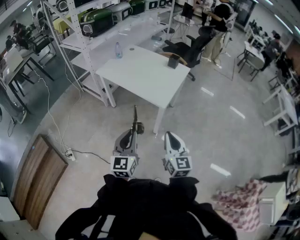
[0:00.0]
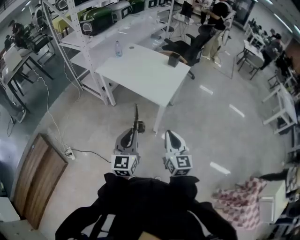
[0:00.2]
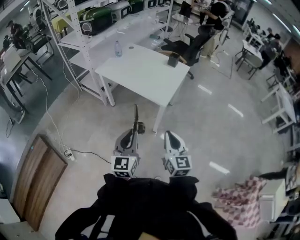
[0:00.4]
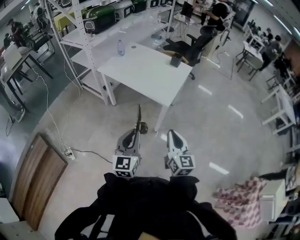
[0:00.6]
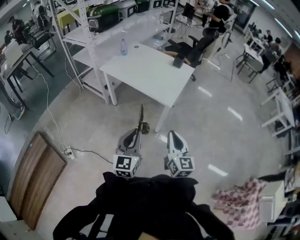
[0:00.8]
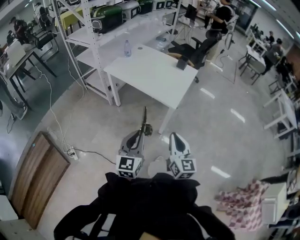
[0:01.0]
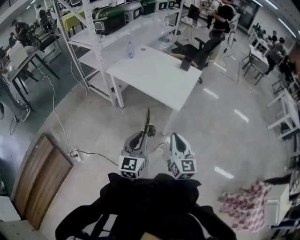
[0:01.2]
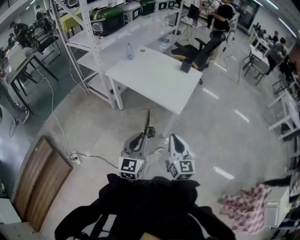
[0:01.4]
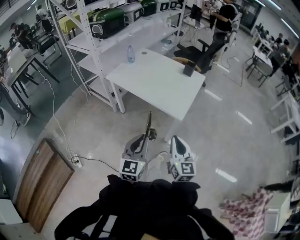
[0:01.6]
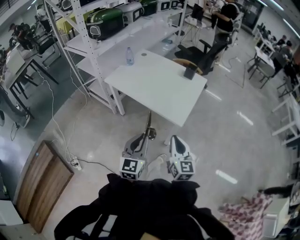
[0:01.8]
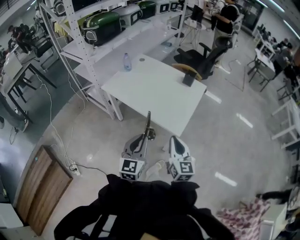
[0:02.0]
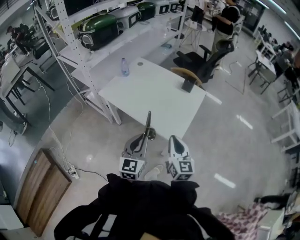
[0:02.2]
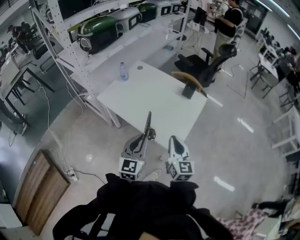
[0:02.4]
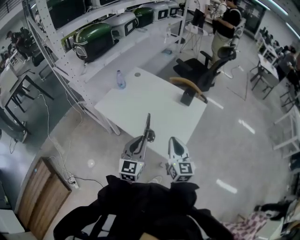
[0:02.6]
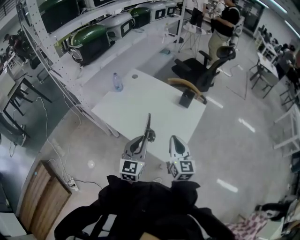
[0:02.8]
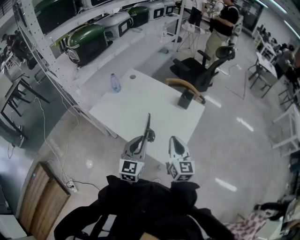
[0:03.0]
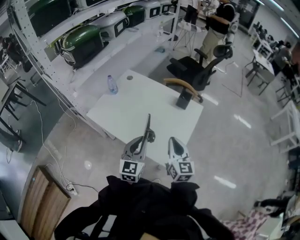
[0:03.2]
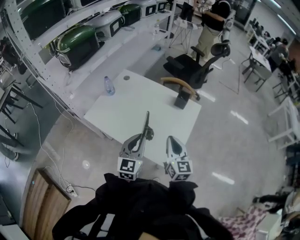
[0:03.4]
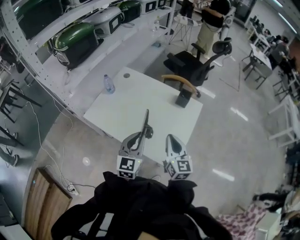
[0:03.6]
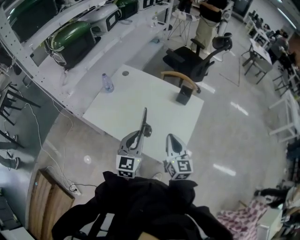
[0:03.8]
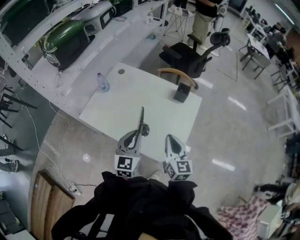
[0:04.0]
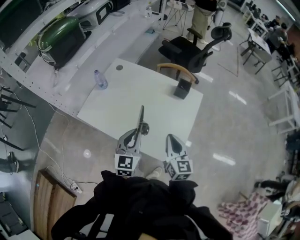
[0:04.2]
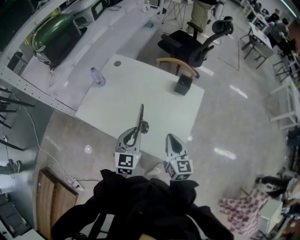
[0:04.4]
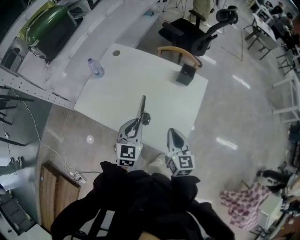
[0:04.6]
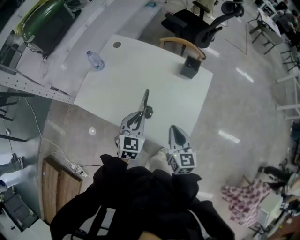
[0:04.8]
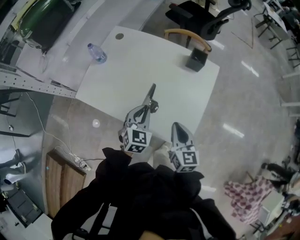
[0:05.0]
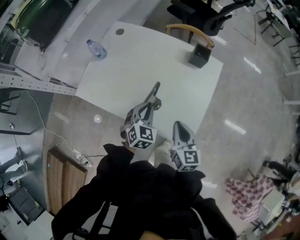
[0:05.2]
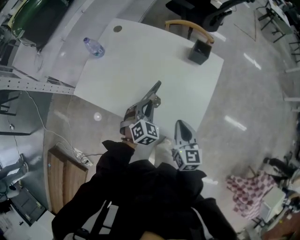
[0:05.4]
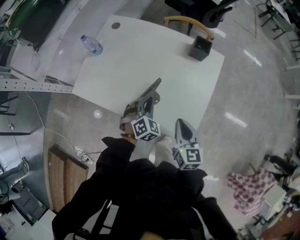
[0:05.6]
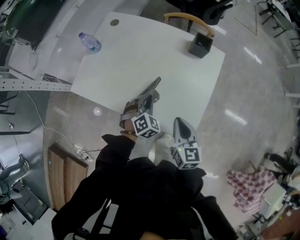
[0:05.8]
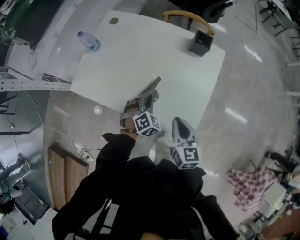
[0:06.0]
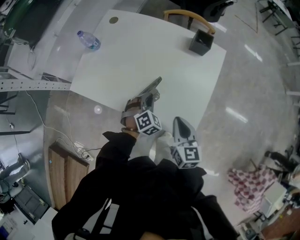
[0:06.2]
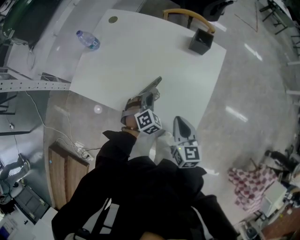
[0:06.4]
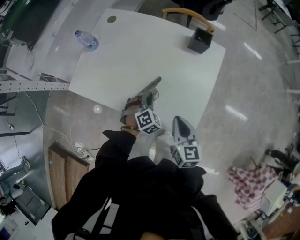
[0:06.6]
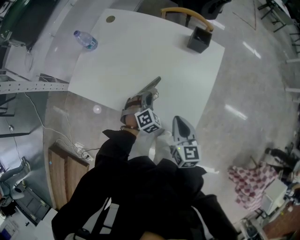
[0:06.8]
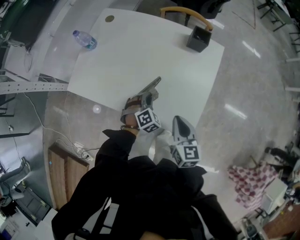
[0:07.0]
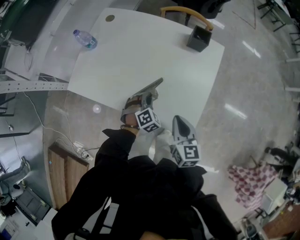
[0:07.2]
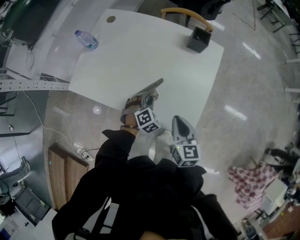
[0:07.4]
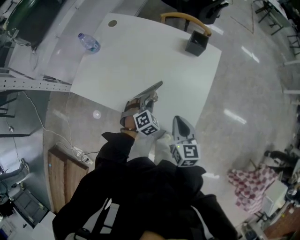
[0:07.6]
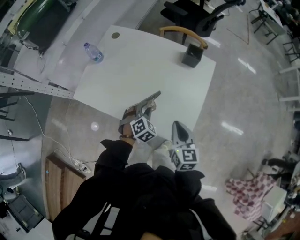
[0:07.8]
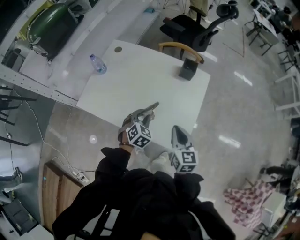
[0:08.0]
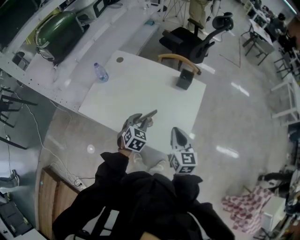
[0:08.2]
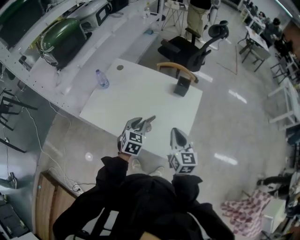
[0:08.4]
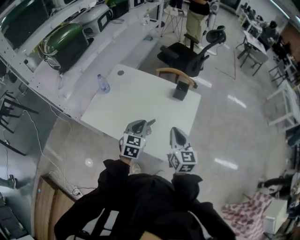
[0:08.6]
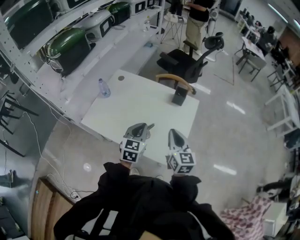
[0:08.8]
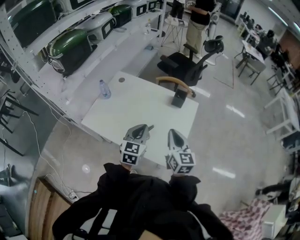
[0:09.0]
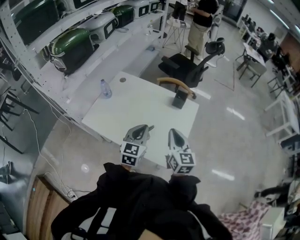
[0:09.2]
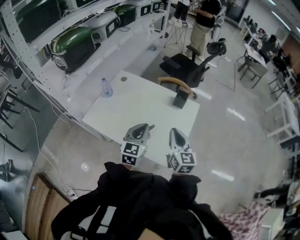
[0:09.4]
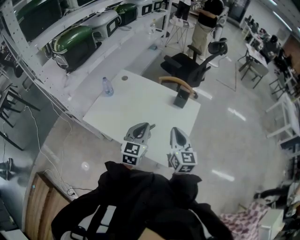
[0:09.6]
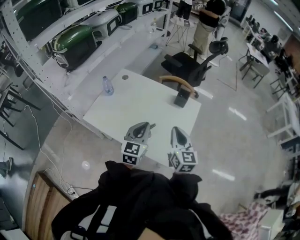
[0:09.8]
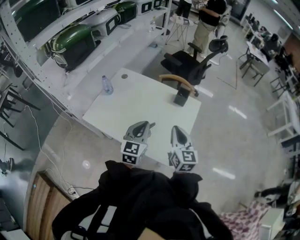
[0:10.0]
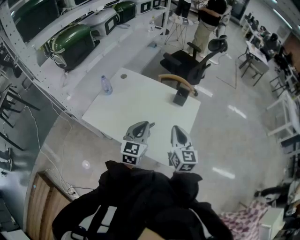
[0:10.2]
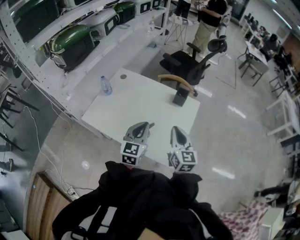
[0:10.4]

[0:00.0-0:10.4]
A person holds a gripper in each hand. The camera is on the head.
0:00.0 to 0:01.4: Both grippers move to the left, about 10 cm.
0:01.4 to 0:03.0: Both grippers travel together forward, some 40 cm.
0:03.0 to 0:04.4: The right gripper moves downward, some 5 cm. Meanwhile the left gripper is displaced forward and downward by about 10 cm.
0:04.4 to 0:06.0: The right gripper travels downward by approximately 10 cm; the left gripper moves downward, approximately 20 cm, and tilts its fingers roughly 30 degrees downward.
0:06.0 to 0:07.4: The grippers move only a little.
0:07.4 to 0:09.0: The left gripper travels upward by some 25 cm, points its fingers about 40 degrees further upward, and closes. Meanwhile the right gripper shifts about 15 cm upward.
0:09.0 to 0:10.4: The grippers stay close to where they were, moving slightly.

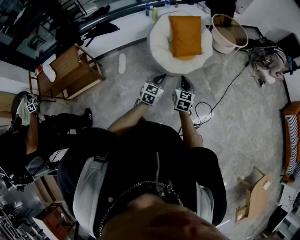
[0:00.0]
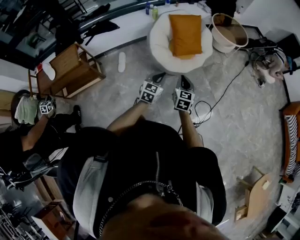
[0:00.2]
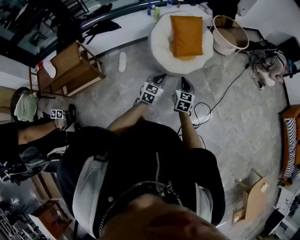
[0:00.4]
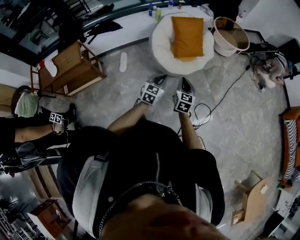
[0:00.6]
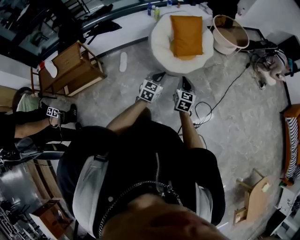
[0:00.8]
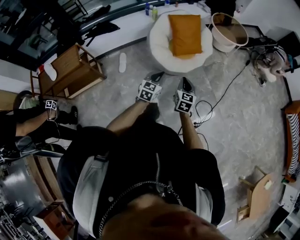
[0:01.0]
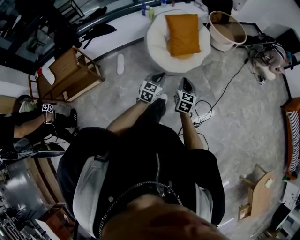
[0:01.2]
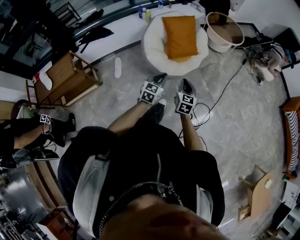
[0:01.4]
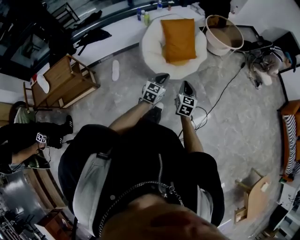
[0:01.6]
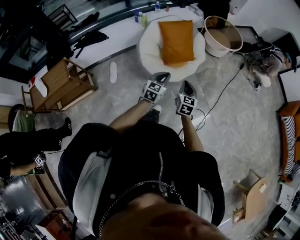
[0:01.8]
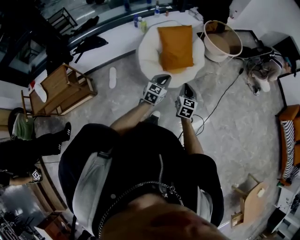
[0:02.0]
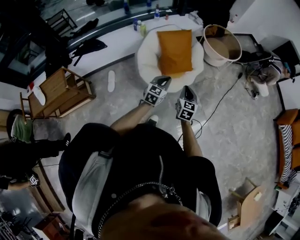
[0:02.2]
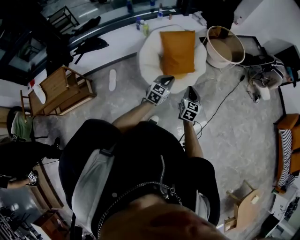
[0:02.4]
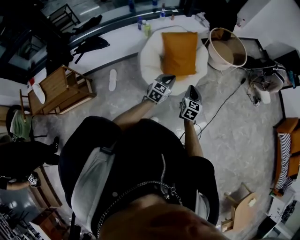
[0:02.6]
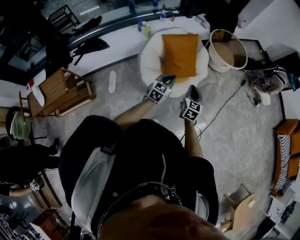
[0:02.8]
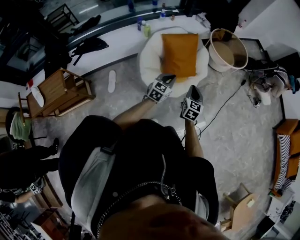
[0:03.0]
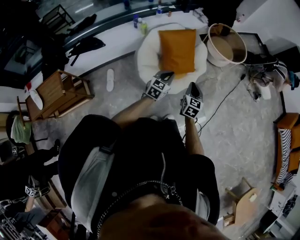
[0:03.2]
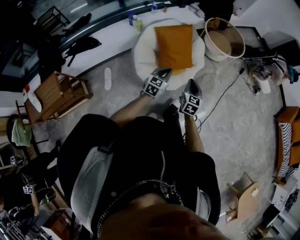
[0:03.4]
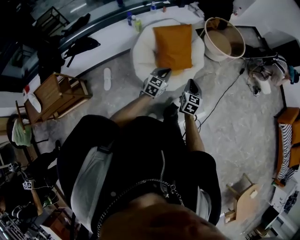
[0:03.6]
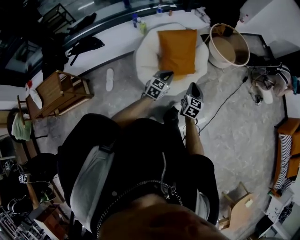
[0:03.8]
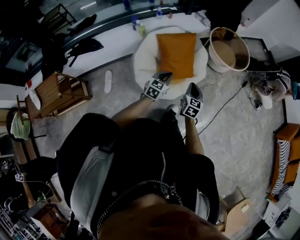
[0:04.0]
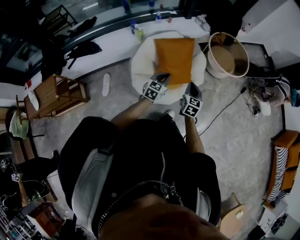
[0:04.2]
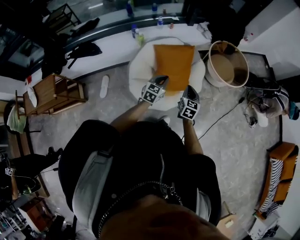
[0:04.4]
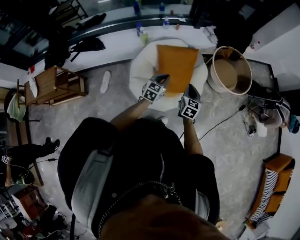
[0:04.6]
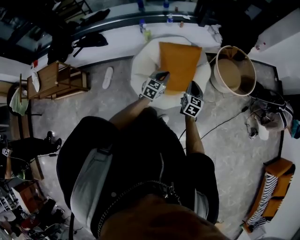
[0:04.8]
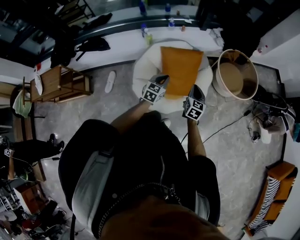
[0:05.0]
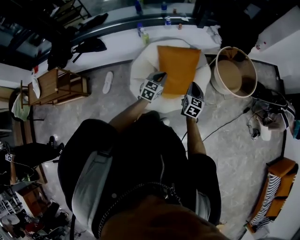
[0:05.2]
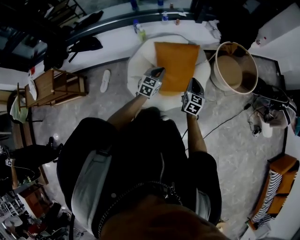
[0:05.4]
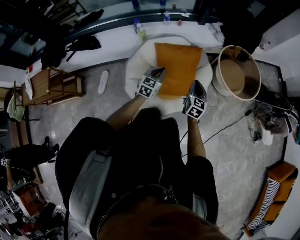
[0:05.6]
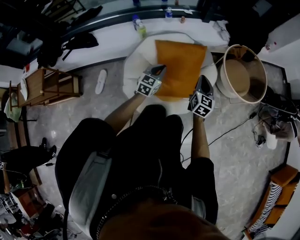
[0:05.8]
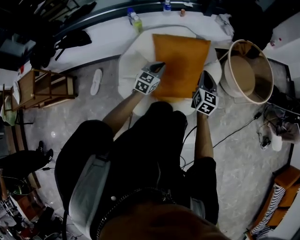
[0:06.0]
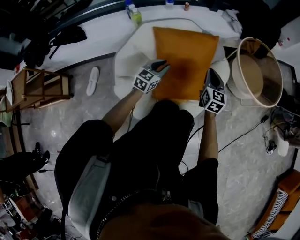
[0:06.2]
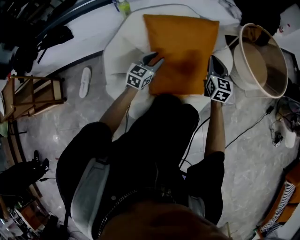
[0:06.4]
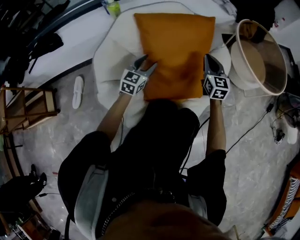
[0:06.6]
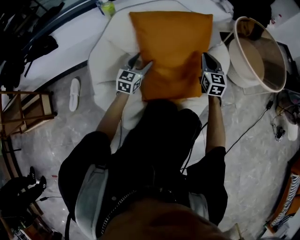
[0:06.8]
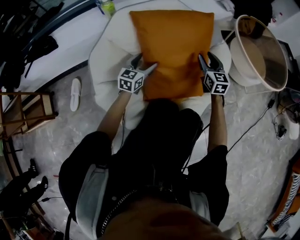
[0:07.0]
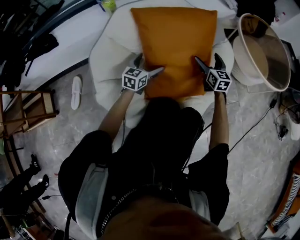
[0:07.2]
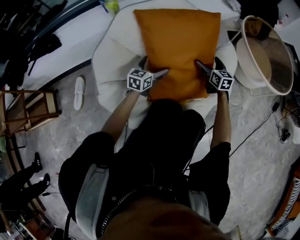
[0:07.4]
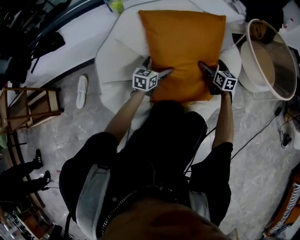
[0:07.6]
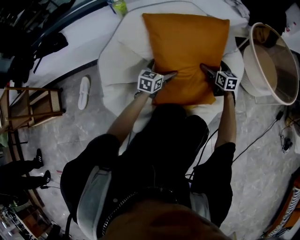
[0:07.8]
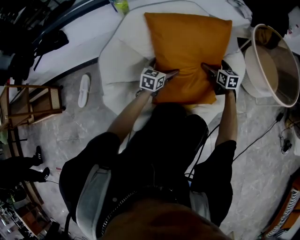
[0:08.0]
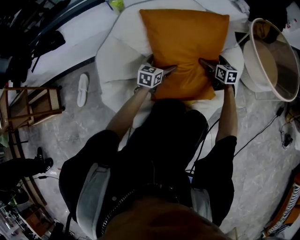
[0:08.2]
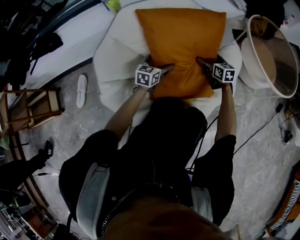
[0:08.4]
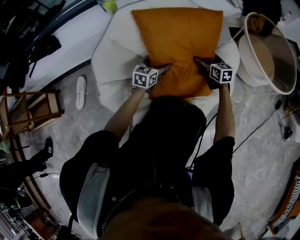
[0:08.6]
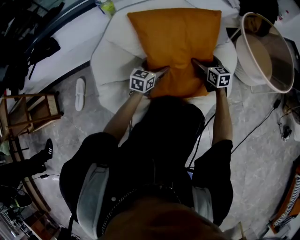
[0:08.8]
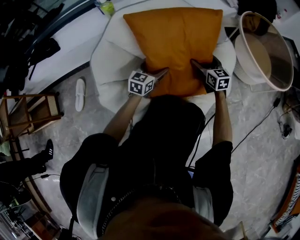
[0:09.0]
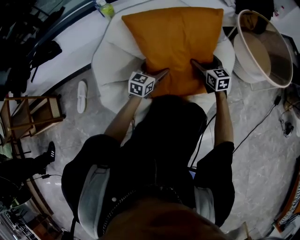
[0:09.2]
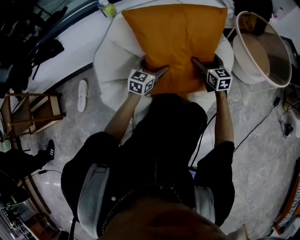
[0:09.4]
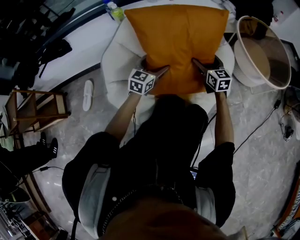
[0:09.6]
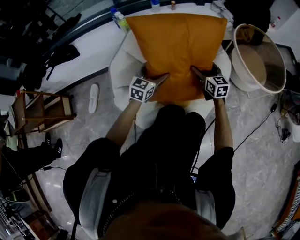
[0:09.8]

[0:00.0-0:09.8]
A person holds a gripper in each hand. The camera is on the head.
0:00.0 to 0:01.4: The left gripper is displaced forward by roughly 5 cm. Meanwhile the right gripper shifts by roughly 5 cm.
0:01.4 to 0:02.8: The grippers both shift forward by about 25 cm.
0:02.8 to 0:04.2: Both grippers move forward, about 15 cm.
0:04.2 to 0:05.6: The grippers both shift forward by some 15 cm.
0:05.6 to 0:07.0: The right gripper heads downward and forward, covering approximately 40 cm. Meanwhile the left gripper is displaced downward by about 40 cm, and opens up.
0:07.0 to 0:08.4: The left gripper heads downward, covering about 5 cm. The right gripper heads downward and forward, covering roughly 10 cm, swivels roughly 20 degrees, and opens its fingers.
0:08.4 to 0:09.8: Both grippers travel together upward and backward, about 20 cm.

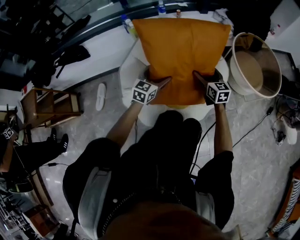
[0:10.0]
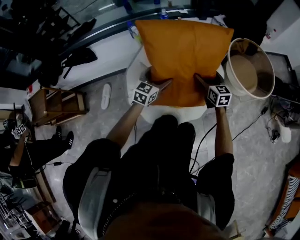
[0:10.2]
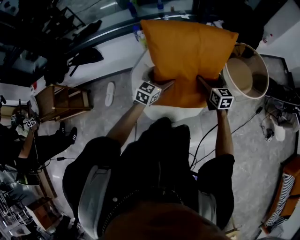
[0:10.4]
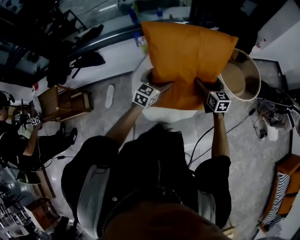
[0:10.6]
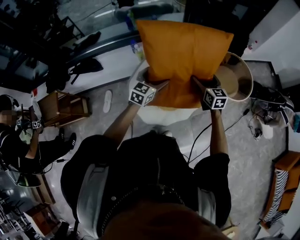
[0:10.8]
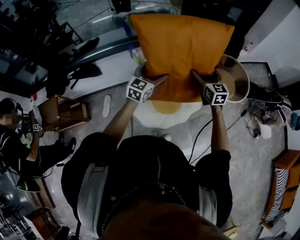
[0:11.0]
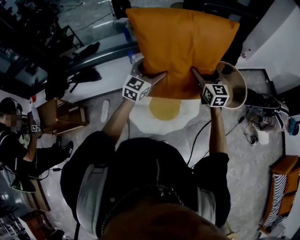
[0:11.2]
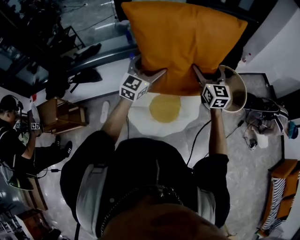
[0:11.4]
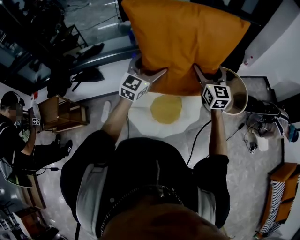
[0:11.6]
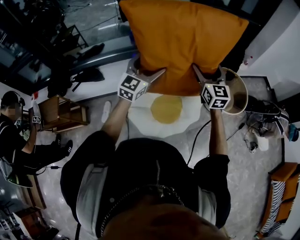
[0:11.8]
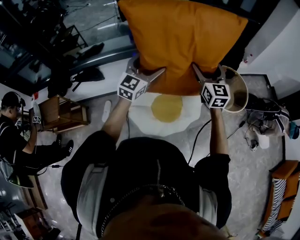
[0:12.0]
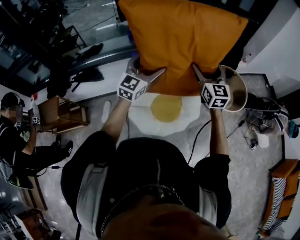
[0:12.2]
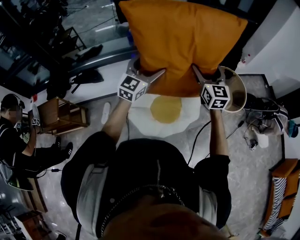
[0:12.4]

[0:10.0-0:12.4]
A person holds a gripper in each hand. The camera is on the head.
0:10.0 to 0:11.2: The grippers both shift upward by approximately 50 cm.
0:11.2 to 0:12.4: Both grippers move upward, some 5 cm.

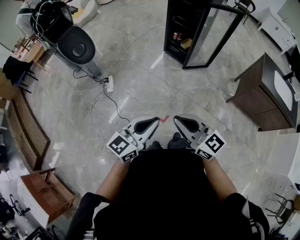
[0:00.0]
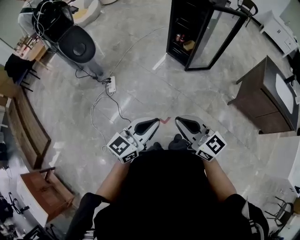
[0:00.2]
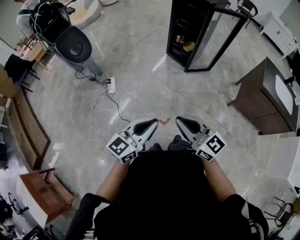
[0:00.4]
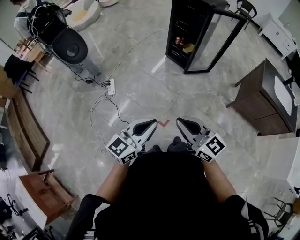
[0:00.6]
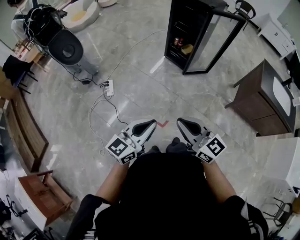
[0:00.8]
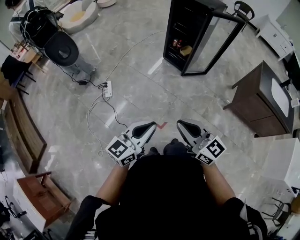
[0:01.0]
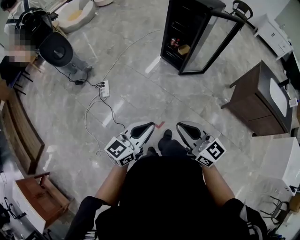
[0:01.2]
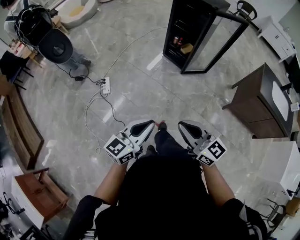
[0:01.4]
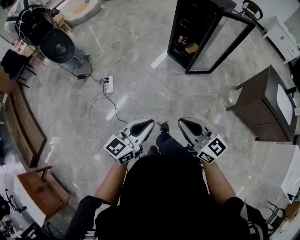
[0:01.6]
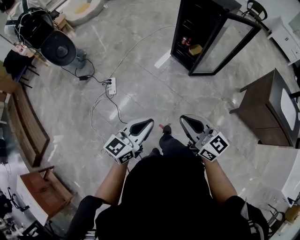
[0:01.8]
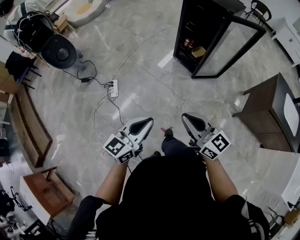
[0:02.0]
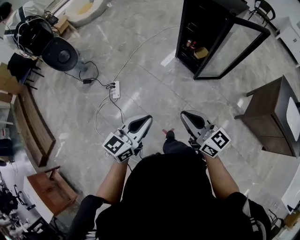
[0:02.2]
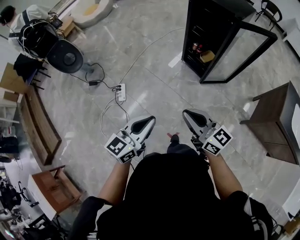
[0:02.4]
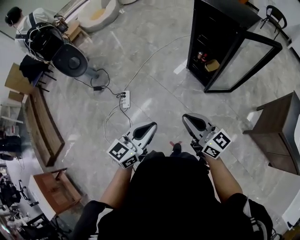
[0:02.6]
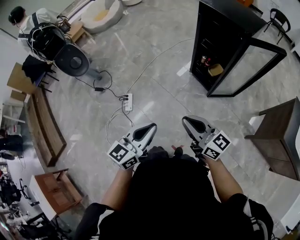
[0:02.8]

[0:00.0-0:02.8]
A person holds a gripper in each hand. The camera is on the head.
0:00.0 to 0:01.4: The left gripper moves some 5 cm.
0:01.4 to 0:02.8: Both grippers move forward, approximately 30 cm.
